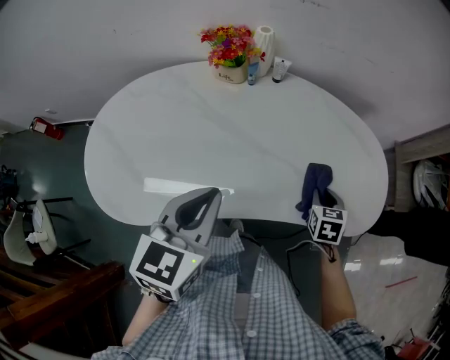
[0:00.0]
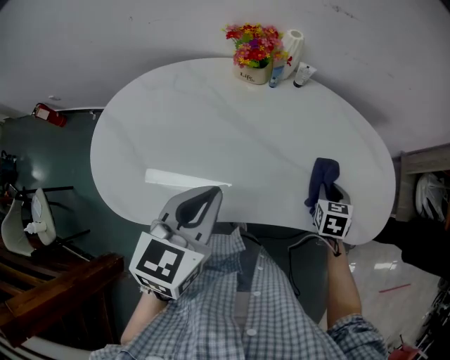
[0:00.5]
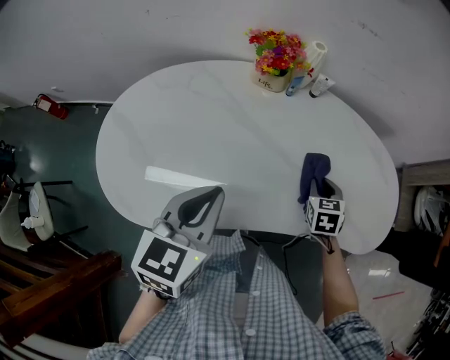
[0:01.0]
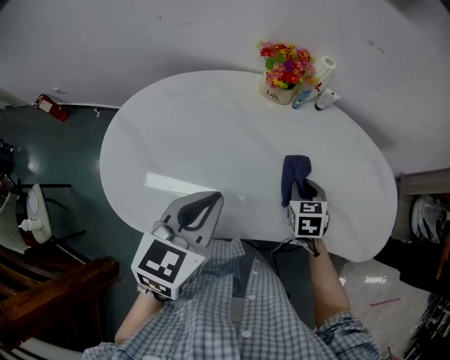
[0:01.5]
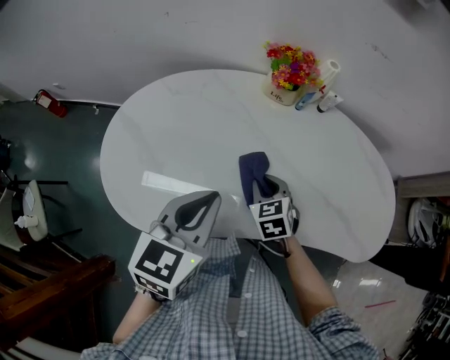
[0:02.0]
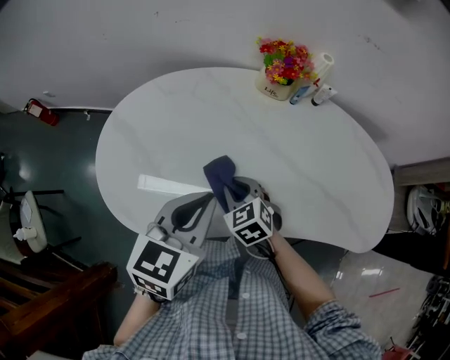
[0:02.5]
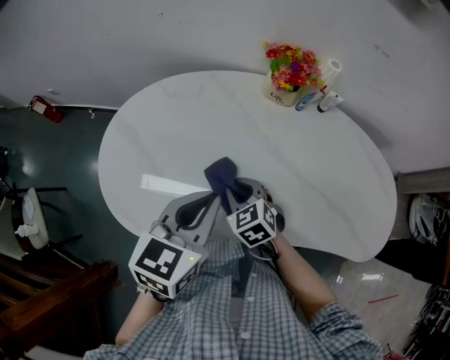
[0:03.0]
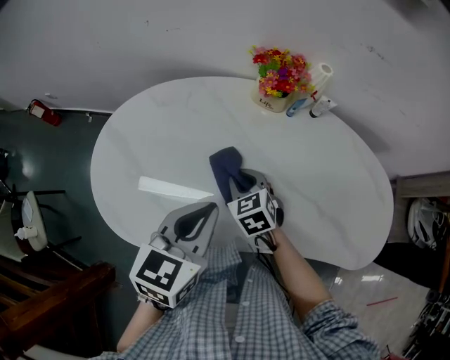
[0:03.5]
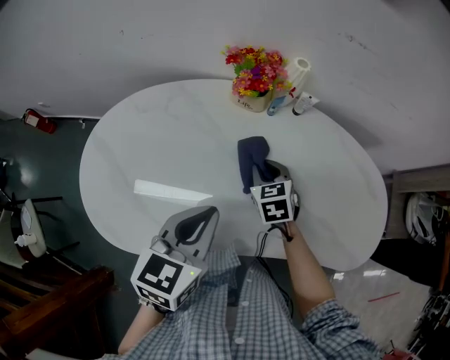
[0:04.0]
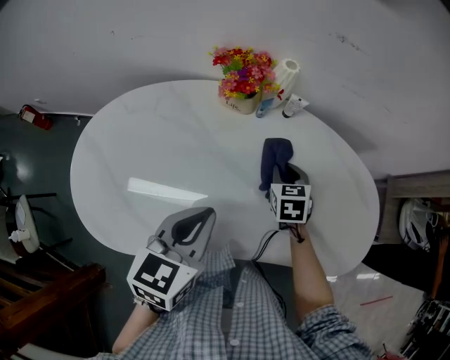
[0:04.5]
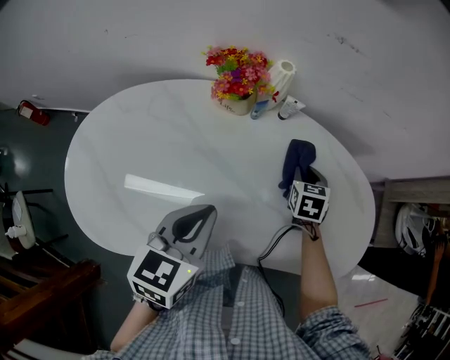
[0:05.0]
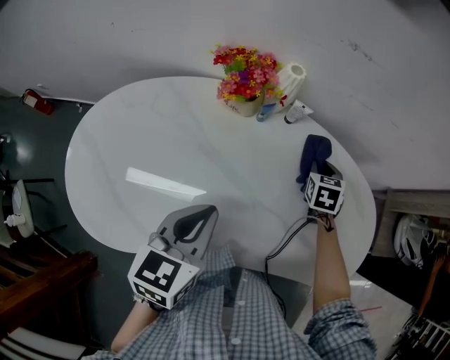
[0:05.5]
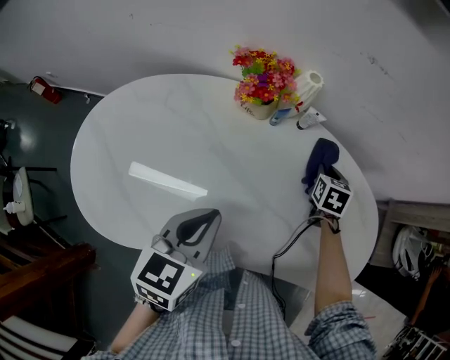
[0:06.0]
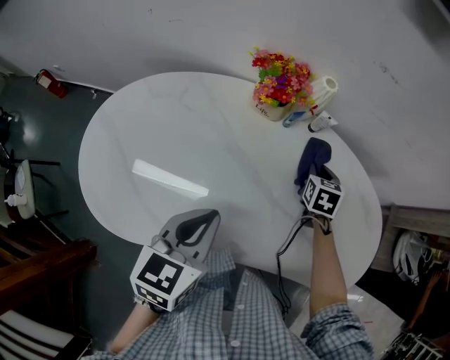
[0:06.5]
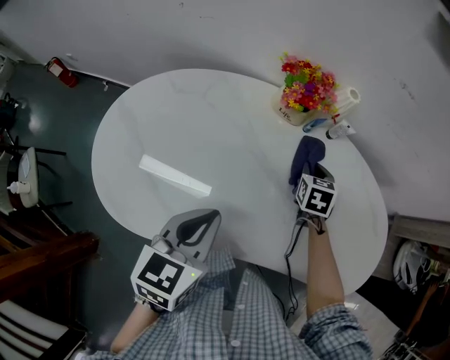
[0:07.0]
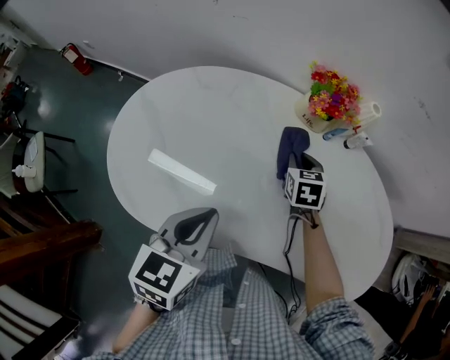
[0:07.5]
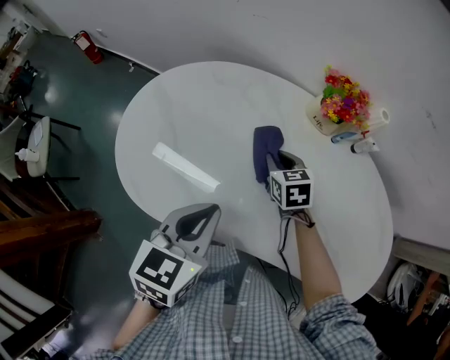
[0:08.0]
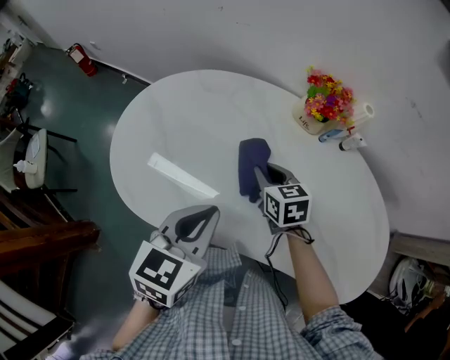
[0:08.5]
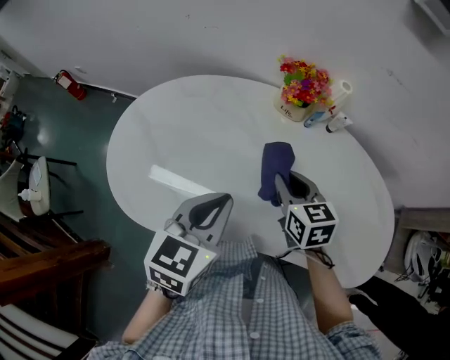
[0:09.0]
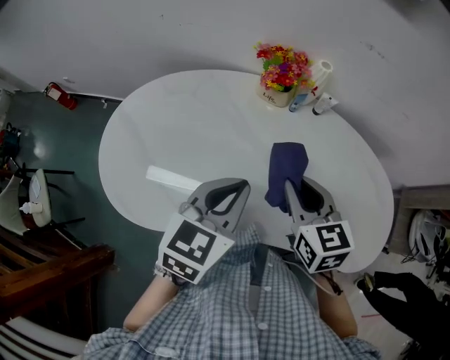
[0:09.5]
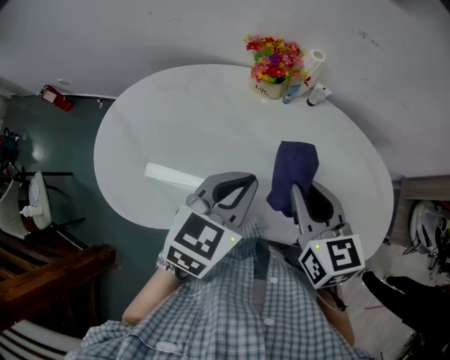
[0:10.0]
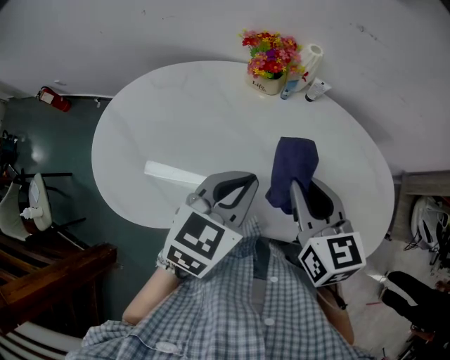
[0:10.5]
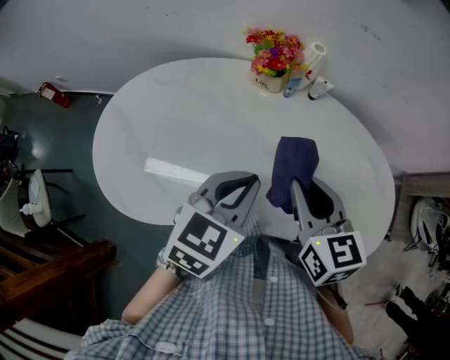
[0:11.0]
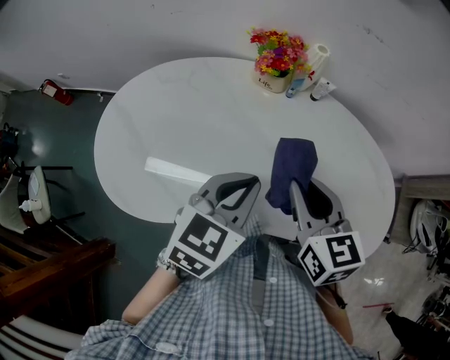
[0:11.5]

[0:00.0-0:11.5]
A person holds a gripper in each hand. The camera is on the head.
0:00.0 to 0:02.0: The left gripper moves to the left, some 15 cm, while the right gripper shifts some 35 cm to the left, and turns by approximately 30 degrees.
0:02.0 to 0:04.0: The right gripper travels forward and to the right by about 10 cm. Meanwhile the left gripper travels to the right by approximately 10 cm.
0:04.0 to 0:06.0: The right gripper is displaced to the right and forward by some 25 cm, and turns by approximately 20 degrees. Meanwhile the left gripper changes place by roughly 5 cm.
0:06.0 to 0:07.5: The left gripper travels to the left and backward by about 15 cm. Meanwhile the right gripper is displaced to the left by about 25 cm, and turns by roughly 20 degrees.
0:07.5 to 0:09.5: The left gripper goes roughly 10 cm to the right; the right gripper shifts roughly 20 cm backward and upward, and rotates approximately 20 degrees.
0:09.5 to 0:11.5: The grippers make only small movements.

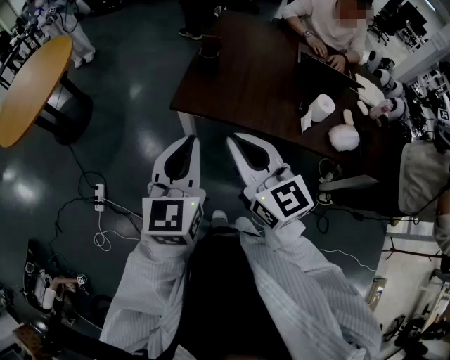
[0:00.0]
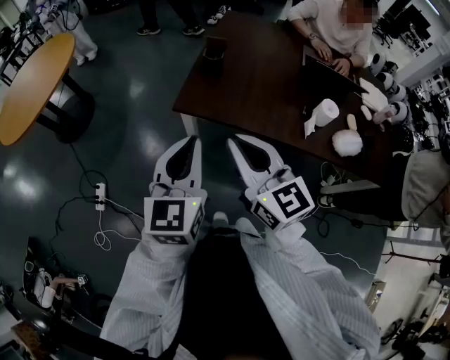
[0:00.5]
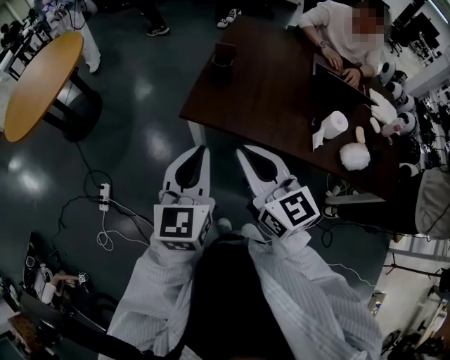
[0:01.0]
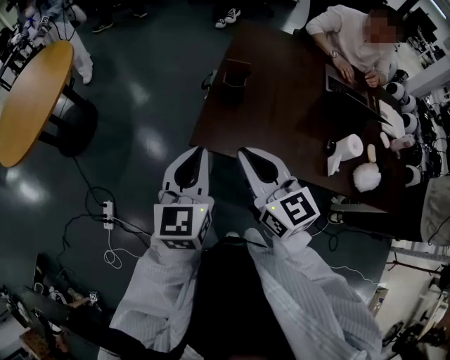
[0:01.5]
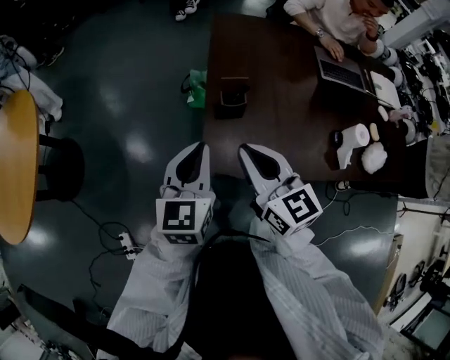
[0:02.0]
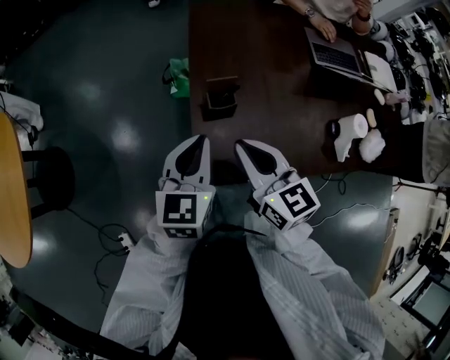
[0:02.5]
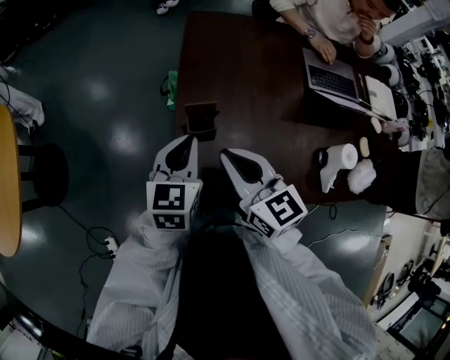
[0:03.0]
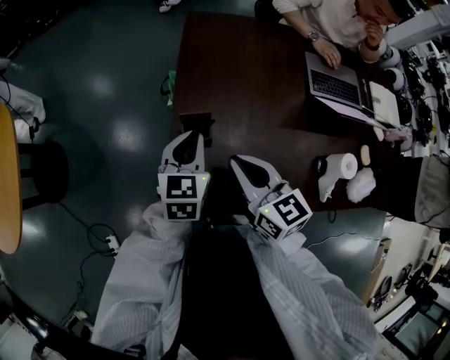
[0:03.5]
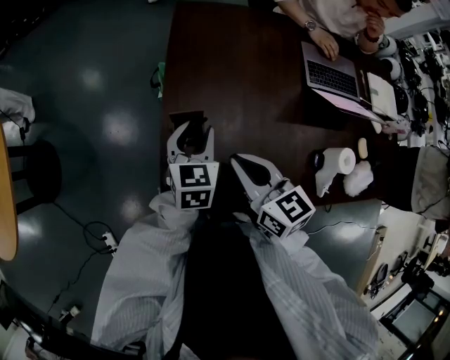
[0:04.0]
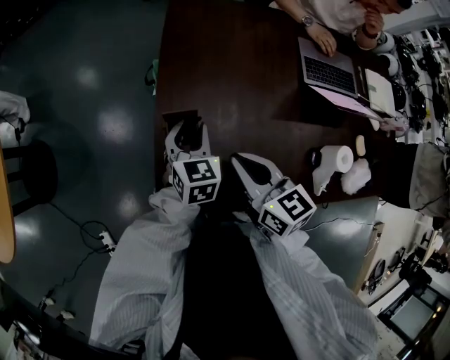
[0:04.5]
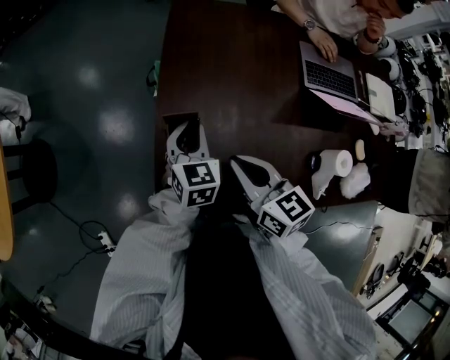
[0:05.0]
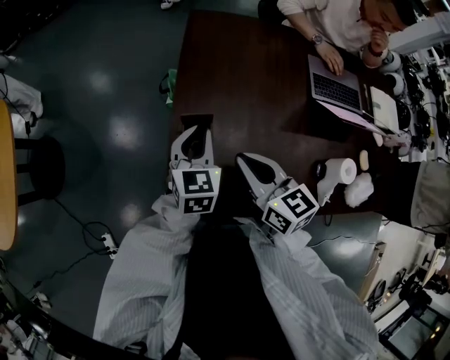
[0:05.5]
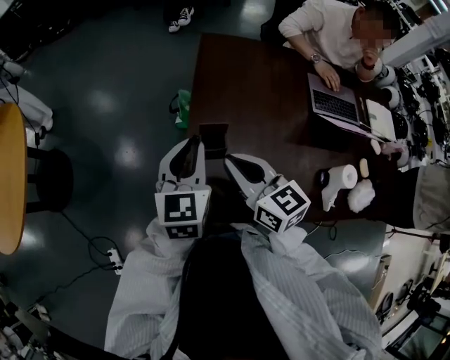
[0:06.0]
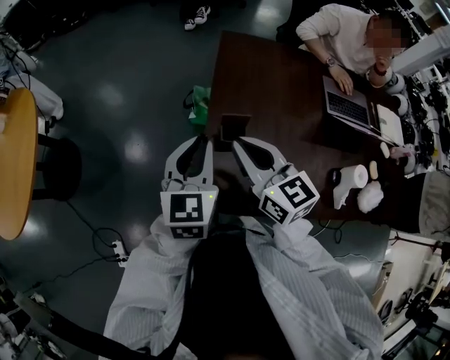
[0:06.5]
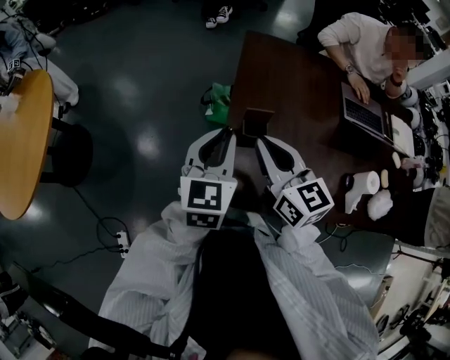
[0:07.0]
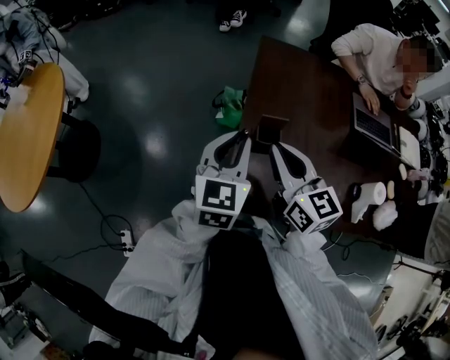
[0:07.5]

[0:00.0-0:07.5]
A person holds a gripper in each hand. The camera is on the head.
0:00.0 to 0:02.0: Both grippers move forward, about 35 cm. The right gripper swivels some 20 degrees.
0:02.0 to 0:04.0: The right gripper travels to the right, forward and downward by roughly 20 cm, while the left gripper heads forward, to the right and downward, covering some 25 cm, and opens up.
0:04.0 to 0:05.5: The left gripper closes its fingers.
0:05.5 to 0:07.5: Both grippers travel together to the left and upward, roughly 15 cm.

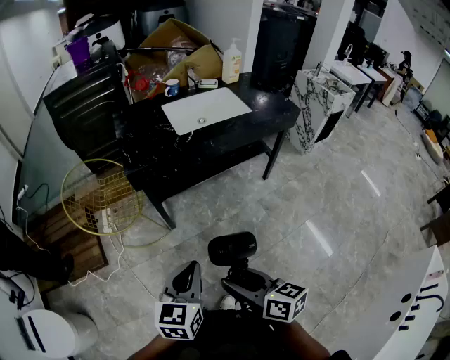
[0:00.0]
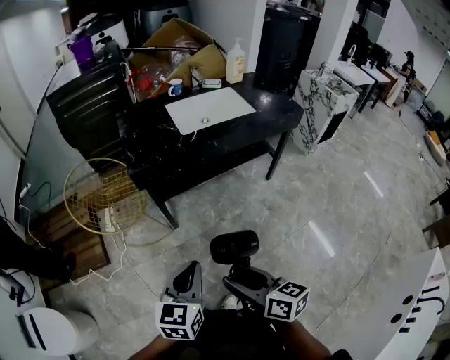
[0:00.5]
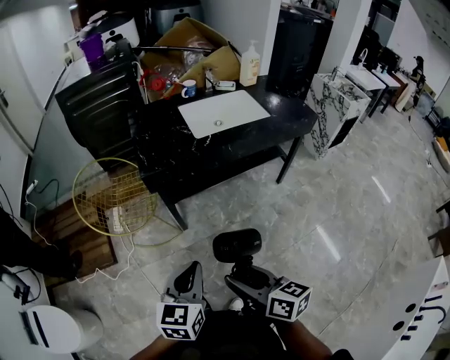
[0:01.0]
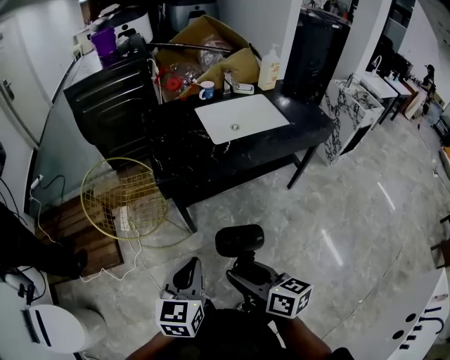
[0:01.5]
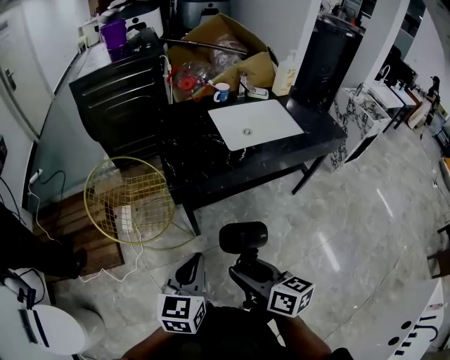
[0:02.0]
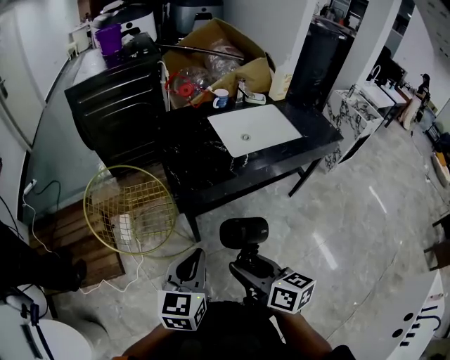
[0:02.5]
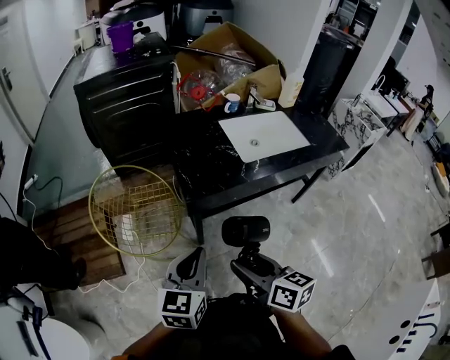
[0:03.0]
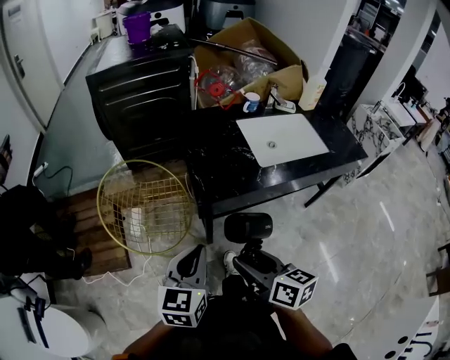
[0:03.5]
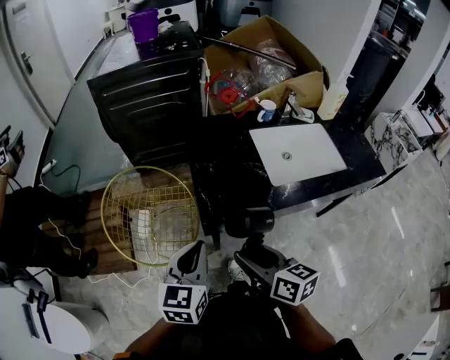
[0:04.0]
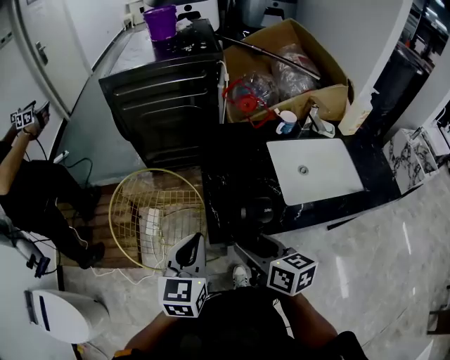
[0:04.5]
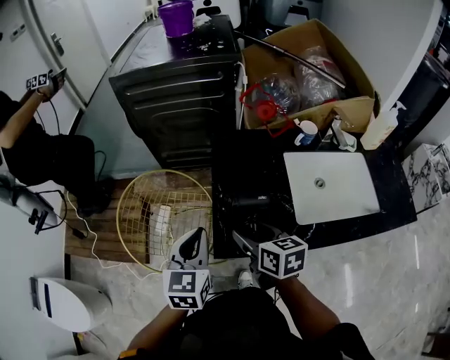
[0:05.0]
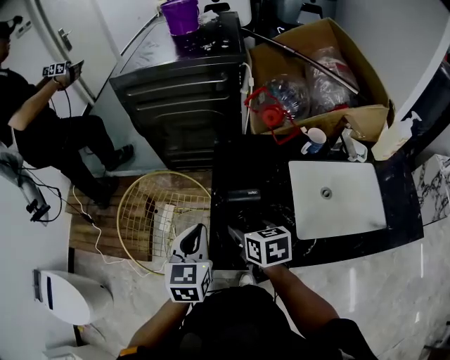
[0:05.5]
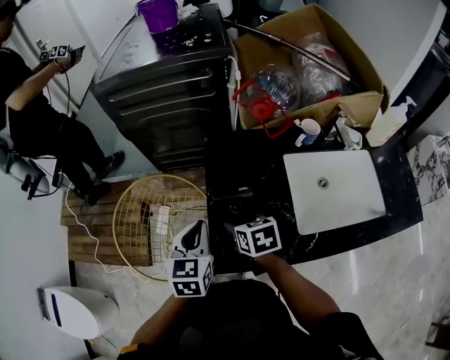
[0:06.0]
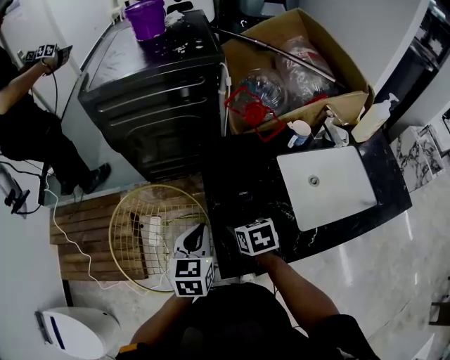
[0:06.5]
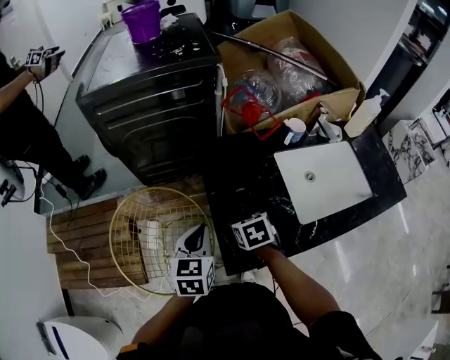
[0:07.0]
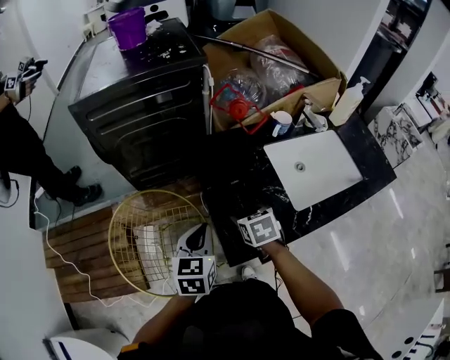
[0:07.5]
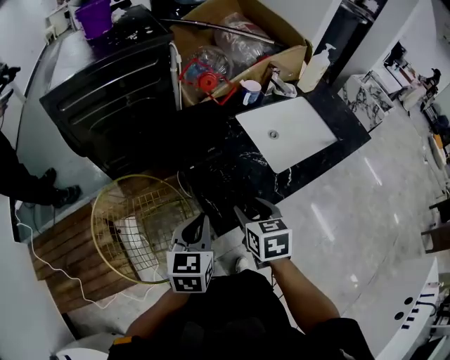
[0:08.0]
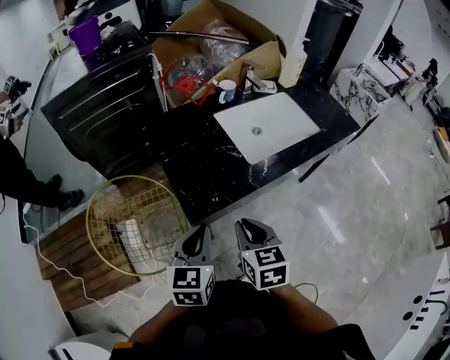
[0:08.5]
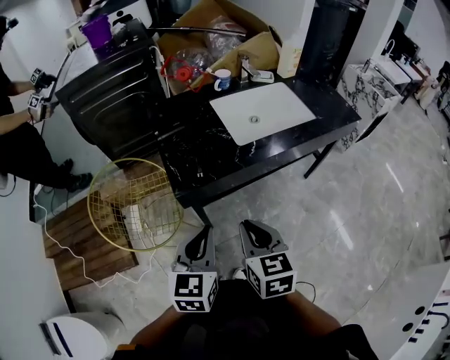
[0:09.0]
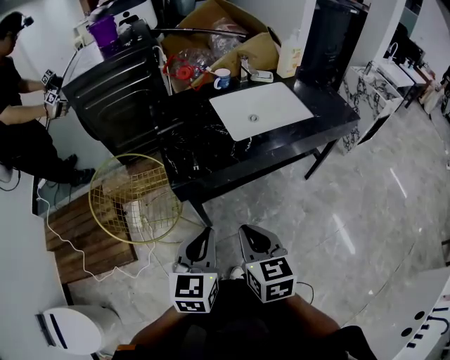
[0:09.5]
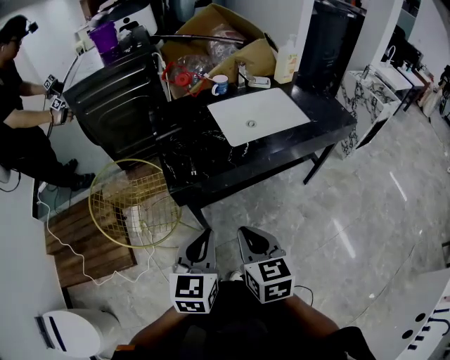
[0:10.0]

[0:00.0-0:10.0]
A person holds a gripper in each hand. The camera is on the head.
0:00.0 to 0:02.0: The grippers both shift forward and to the left by roughly 20 cm.
0:02.0 to 0:04.0: Both grippers travel together forward, roughly 20 cm.
0:04.0 to 0:06.0: Both grippers move forward, approximately 25 cm. The right gripper rotates approximately 30 degrees.
0:06.0 to 0:08.0: The right gripper ends up some 15 cm from where it was, and changes its angle by roughly 40 degrees. The left gripper changes place by roughly 10 cm, and swivels some 30 degrees.
0:08.0 to 0:10.0: The grippers both shift backward and to the right by some 30 cm. The right gripper closes up.
